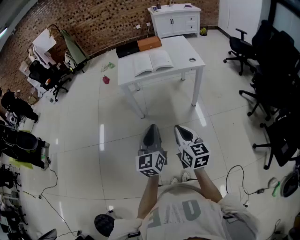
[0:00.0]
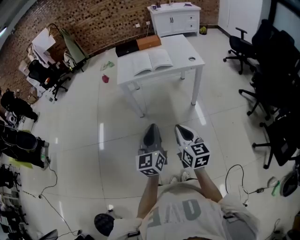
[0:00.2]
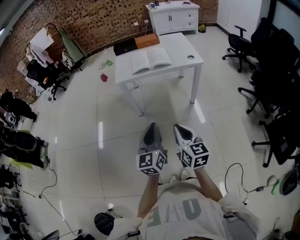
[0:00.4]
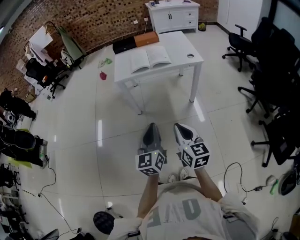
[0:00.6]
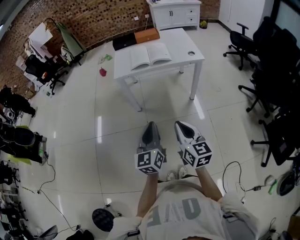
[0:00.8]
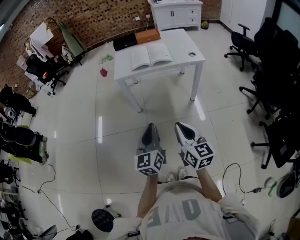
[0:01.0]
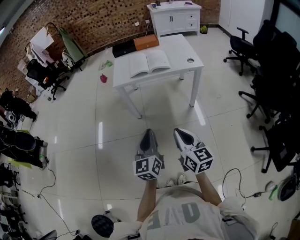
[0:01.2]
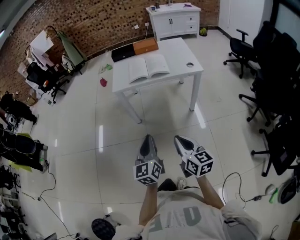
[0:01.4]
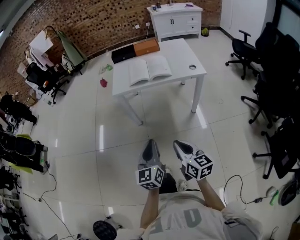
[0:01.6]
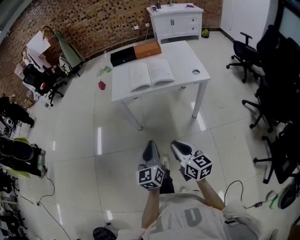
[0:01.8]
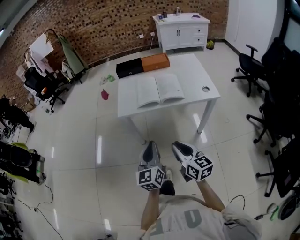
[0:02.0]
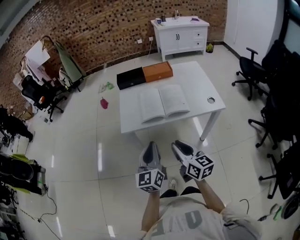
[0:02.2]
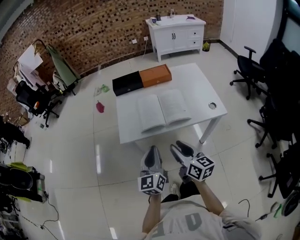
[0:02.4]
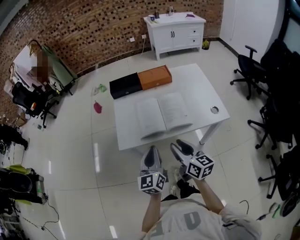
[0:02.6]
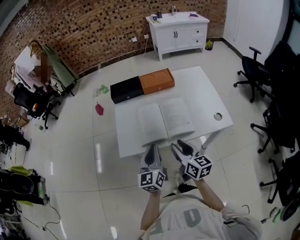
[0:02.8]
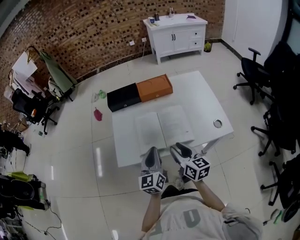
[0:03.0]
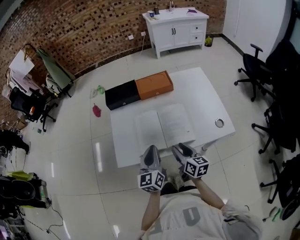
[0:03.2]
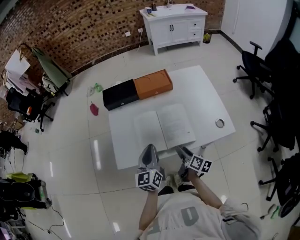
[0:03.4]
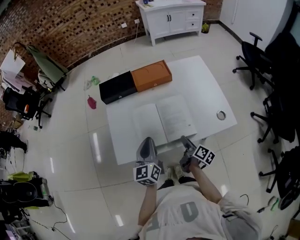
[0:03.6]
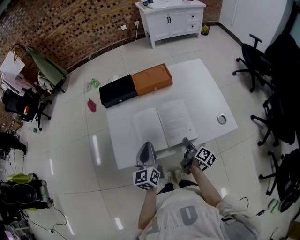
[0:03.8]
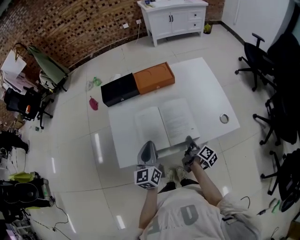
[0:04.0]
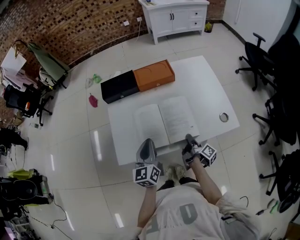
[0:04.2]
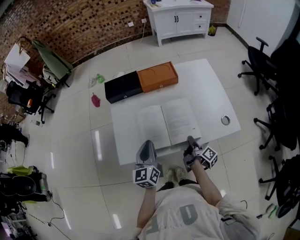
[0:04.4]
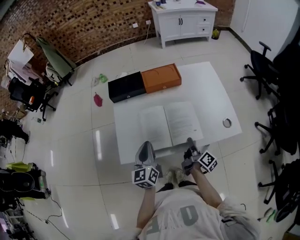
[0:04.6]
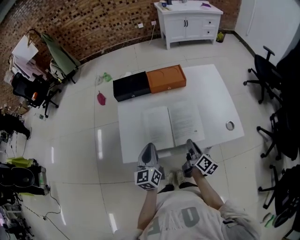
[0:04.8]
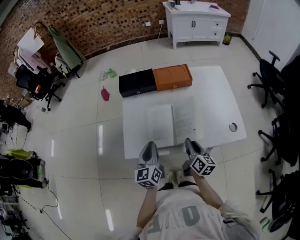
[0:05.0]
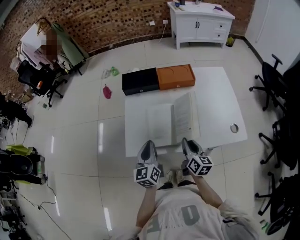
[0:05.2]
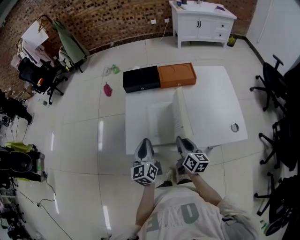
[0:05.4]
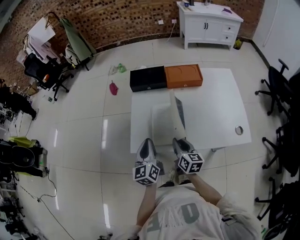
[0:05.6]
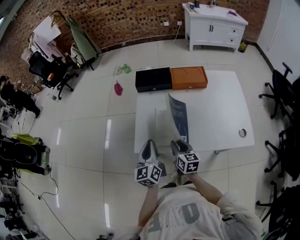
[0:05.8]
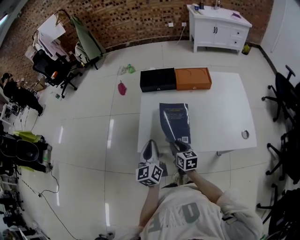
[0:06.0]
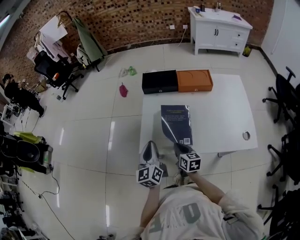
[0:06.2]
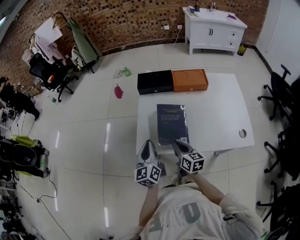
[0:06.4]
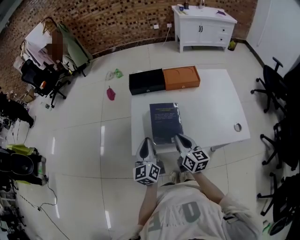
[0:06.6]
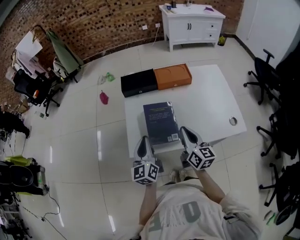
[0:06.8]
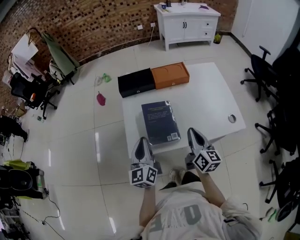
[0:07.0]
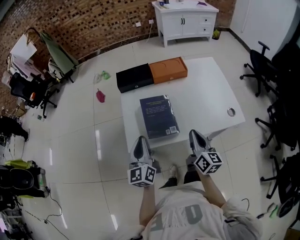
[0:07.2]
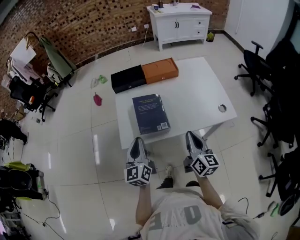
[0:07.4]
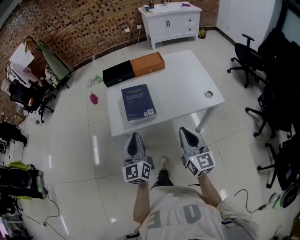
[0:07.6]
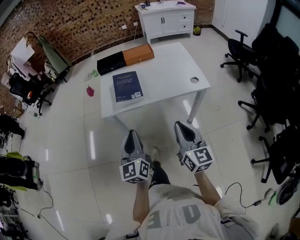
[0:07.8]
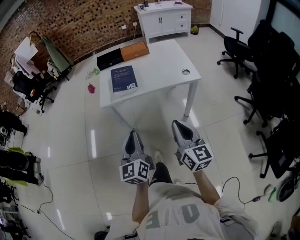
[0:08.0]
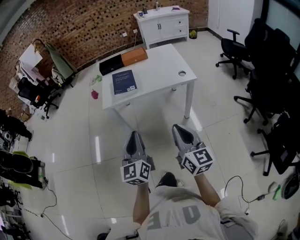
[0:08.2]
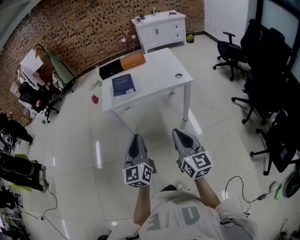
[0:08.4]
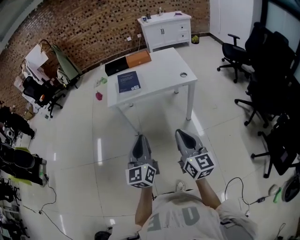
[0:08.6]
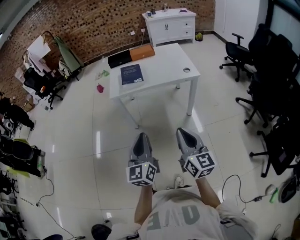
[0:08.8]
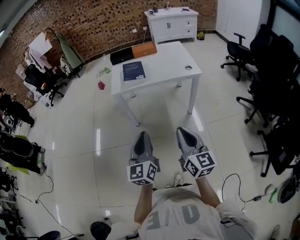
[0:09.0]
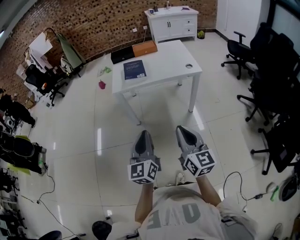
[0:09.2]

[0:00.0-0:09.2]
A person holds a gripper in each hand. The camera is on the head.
0:00.0 to 0:01.6: The grippers both shift forward by approximately 5 cm.
0:01.6 to 0:03.0: Both grippers are carried forward, approximately 50 cm. The right gripper opens.
0:03.0 to 0:04.6: The left gripper goes some 10 cm forward and to the left. The right gripper heads downward, to the right and forward, covering about 15 cm, rotates around the line of its fingers by roughly 50 degrees, clockwise from behind, and opens, then closes again.
0:04.6 to 0:06.2: The left gripper goes some 10 cm to the left. The right gripper shifts about 20 cm to the left, and twists roughly 50 degrees counterclockwise, seen from behind.
0:06.2 to 0:07.6: The left gripper shifts roughly 15 cm backward and to the right, while the right gripper shifts approximately 30 cm backward, upward and to the right, and turns by roughly 40 degrees.
0:07.6 to 0:09.2: Both grippers travel together backward, some 40 cm.

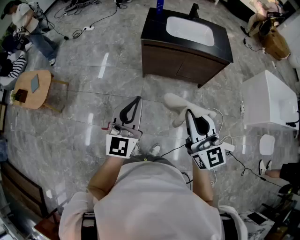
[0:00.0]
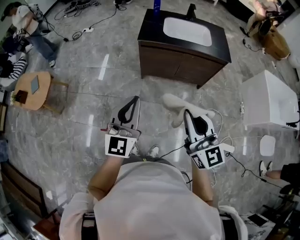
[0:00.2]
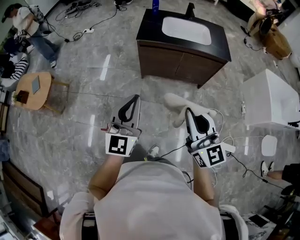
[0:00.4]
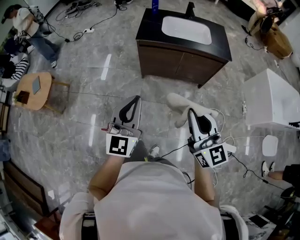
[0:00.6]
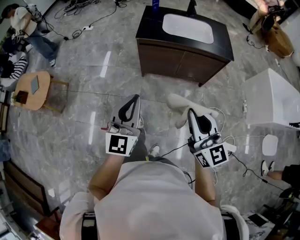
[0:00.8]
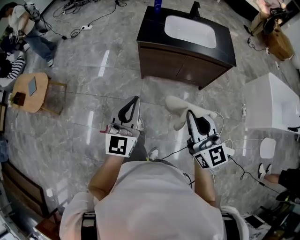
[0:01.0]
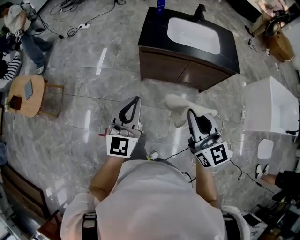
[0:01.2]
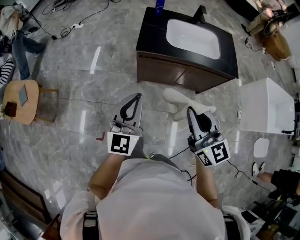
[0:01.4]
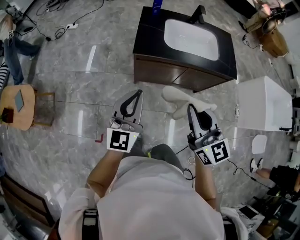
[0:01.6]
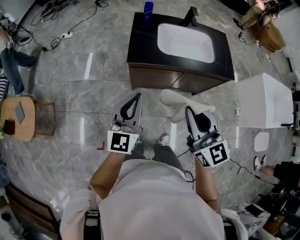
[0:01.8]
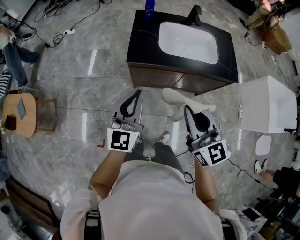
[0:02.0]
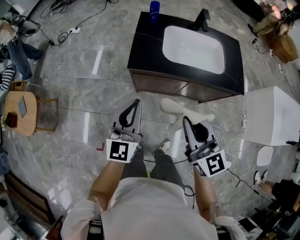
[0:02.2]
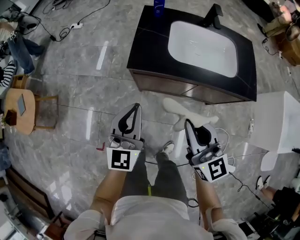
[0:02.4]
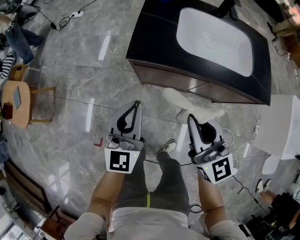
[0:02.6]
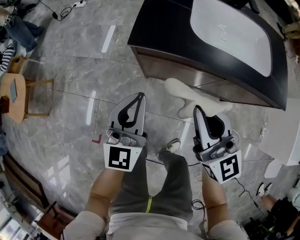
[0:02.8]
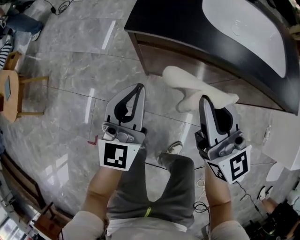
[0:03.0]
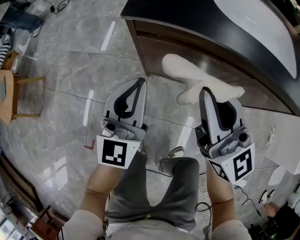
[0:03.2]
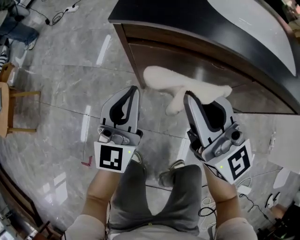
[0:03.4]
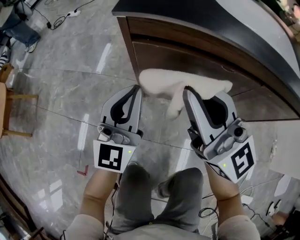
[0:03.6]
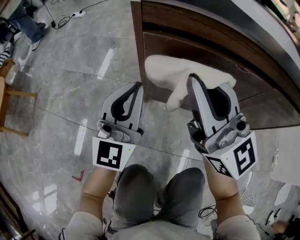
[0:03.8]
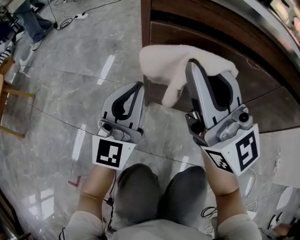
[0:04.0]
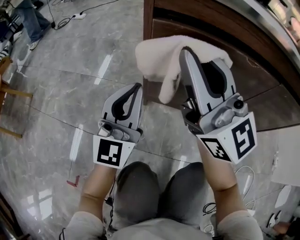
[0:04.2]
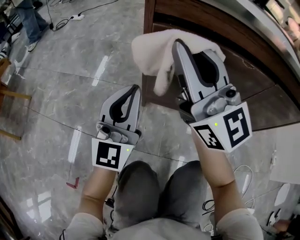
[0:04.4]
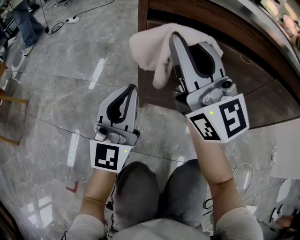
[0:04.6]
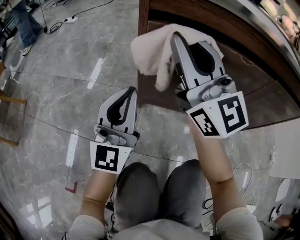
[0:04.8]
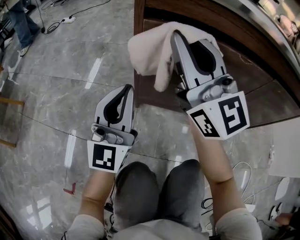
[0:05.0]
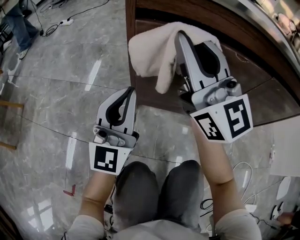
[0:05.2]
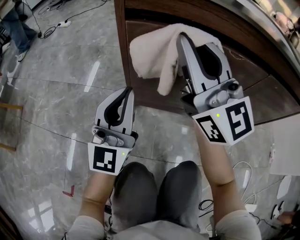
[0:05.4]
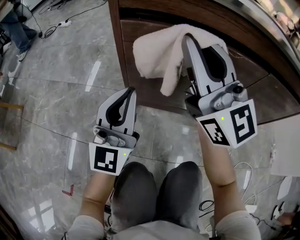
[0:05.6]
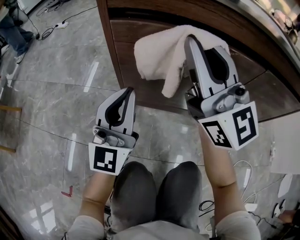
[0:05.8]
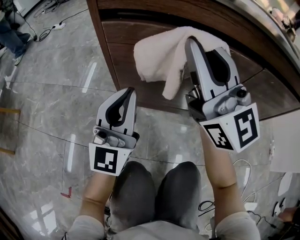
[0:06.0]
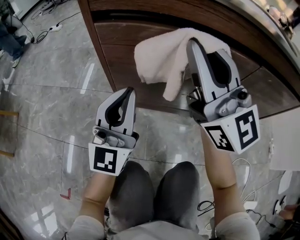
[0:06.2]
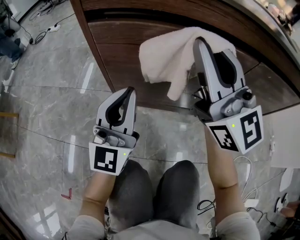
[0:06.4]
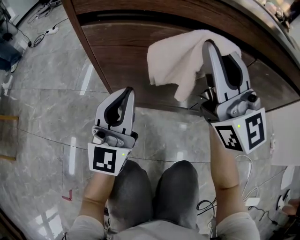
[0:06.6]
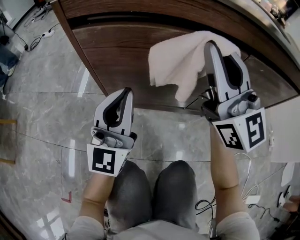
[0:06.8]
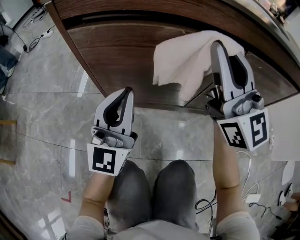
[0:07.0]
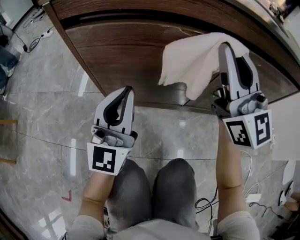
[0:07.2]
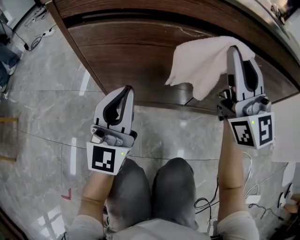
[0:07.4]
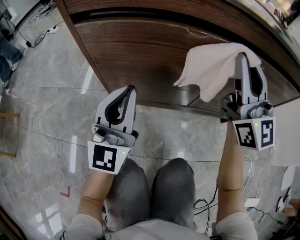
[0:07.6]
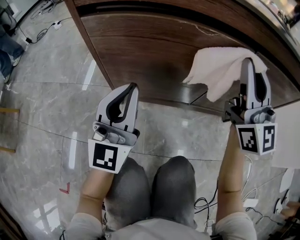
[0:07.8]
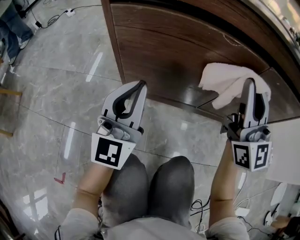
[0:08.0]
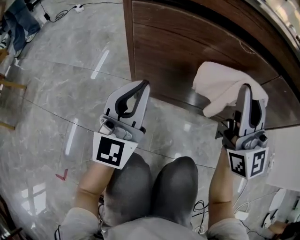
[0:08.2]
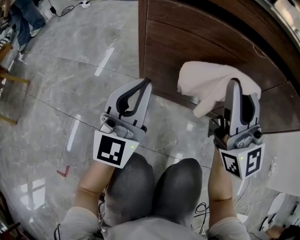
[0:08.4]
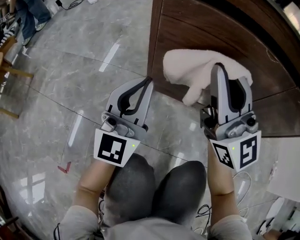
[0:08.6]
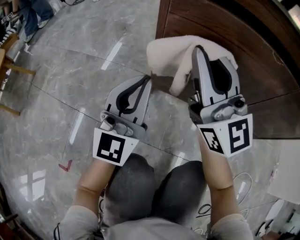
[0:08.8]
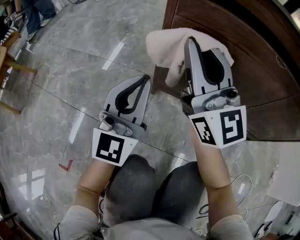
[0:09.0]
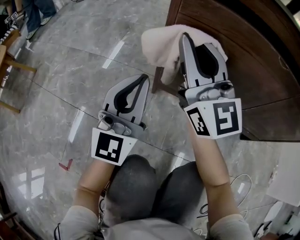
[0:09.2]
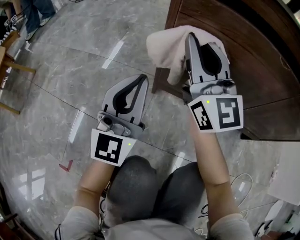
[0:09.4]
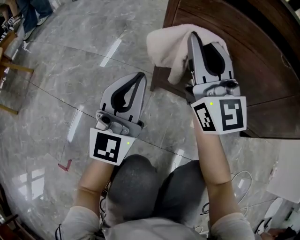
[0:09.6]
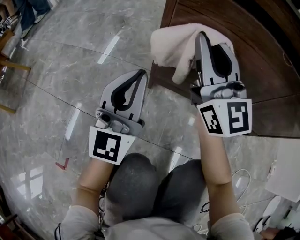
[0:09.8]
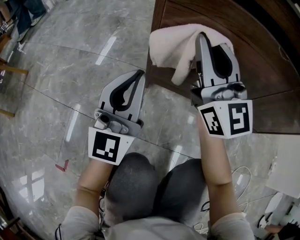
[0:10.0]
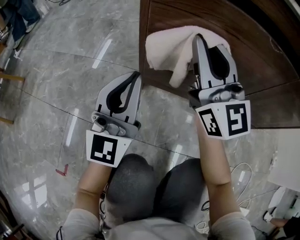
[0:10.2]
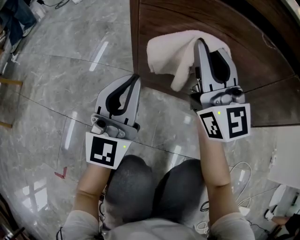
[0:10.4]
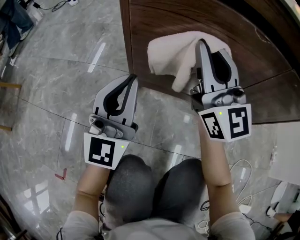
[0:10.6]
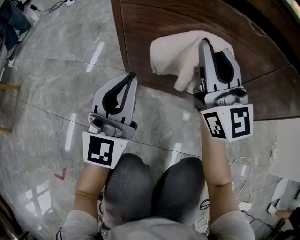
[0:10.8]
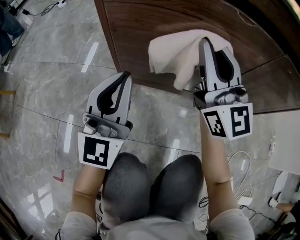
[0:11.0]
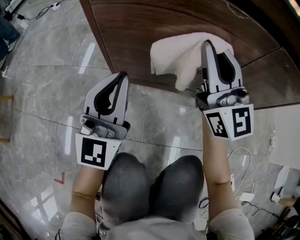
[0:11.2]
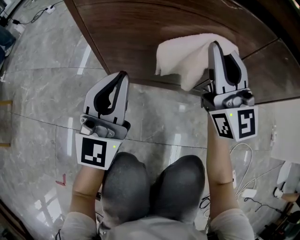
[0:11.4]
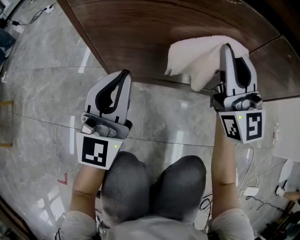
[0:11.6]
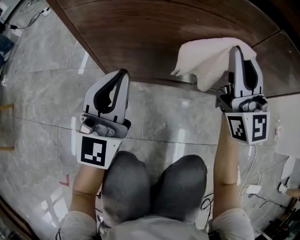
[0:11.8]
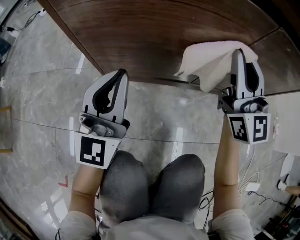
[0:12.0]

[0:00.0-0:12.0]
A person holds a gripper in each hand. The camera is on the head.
0:00.0 to 0:01.6: Both grippers travel together forward, some 30 cm.
0:01.6 to 0:03.0: The grippers both shift downward and forward by about 40 cm.
0:03.0 to 0:04.4: The left gripper goes approximately 25 cm downward. Meanwhile the right gripper heads downward, to the left and forward, covering about 20 cm, and turns by some 20 degrees.
0:04.4 to 0:06.0: Both grippers travel together to the right, some 10 cm.
0:06.0 to 0:07.6: The right gripper shifts roughly 20 cm to the right, while the left gripper shifts about 5 cm to the right.
0:07.6 to 0:09.0: The left gripper goes some 15 cm to the left, while the right gripper travels to the left by roughly 30 cm, and rotates approximately 20 degrees.
0:09.0 to 0:10.4: The right gripper travels to the right by approximately 10 cm.
0:10.4 to 0:12.0: The left gripper goes about 10 cm to the right, while the right gripper shifts about 25 cm to the right.

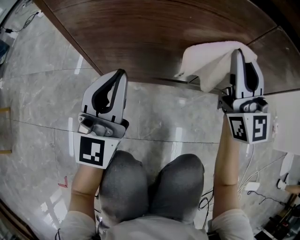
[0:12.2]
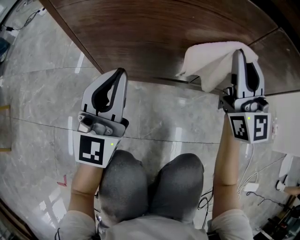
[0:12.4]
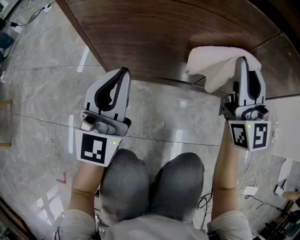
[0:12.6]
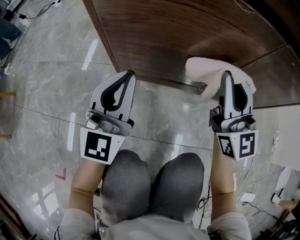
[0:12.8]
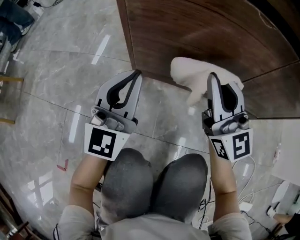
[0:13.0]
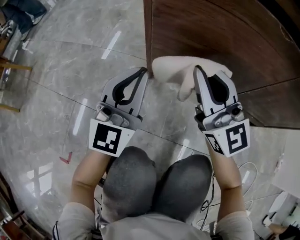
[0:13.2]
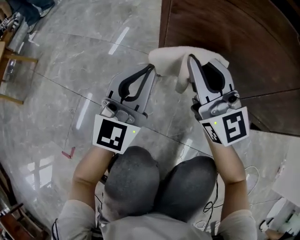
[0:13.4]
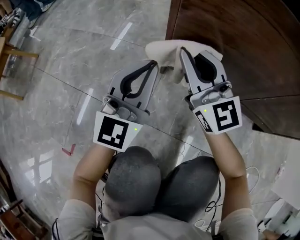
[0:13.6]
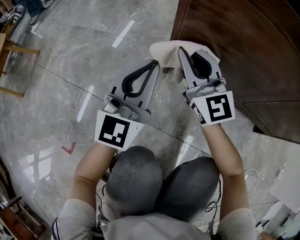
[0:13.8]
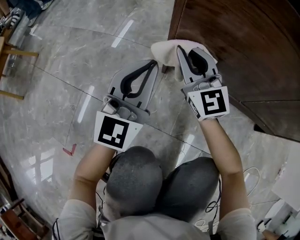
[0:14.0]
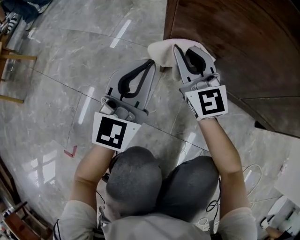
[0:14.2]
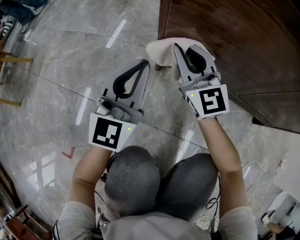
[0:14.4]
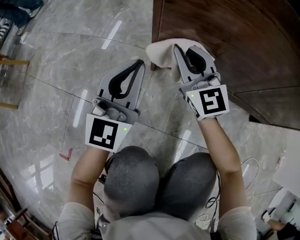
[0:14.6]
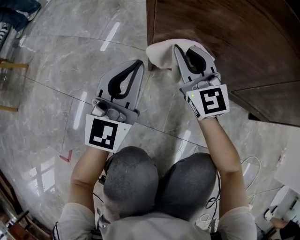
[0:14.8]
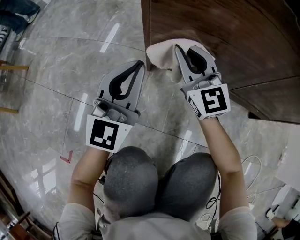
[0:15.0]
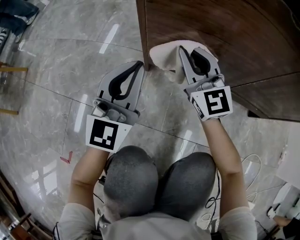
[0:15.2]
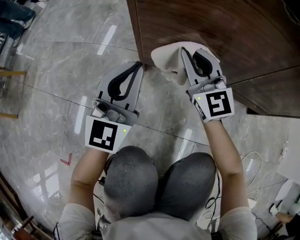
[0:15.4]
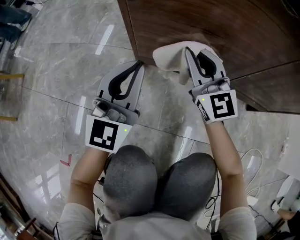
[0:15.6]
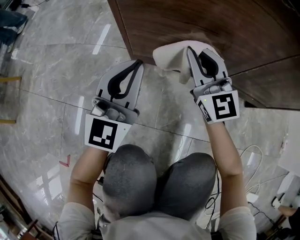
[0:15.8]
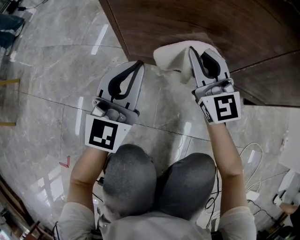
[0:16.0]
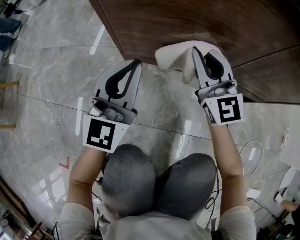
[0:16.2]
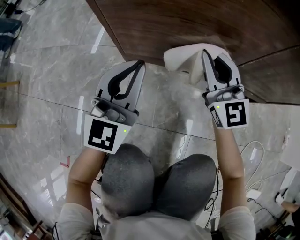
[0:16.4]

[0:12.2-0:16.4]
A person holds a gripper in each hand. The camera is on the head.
0:12.2 to 0:13.6: The right gripper goes about 35 cm to the left, and changes its angle by roughly 30 degrees, while the left gripper moves to the left, roughly 15 cm.
0:13.6 to 0:15.0: The right gripper heads to the right and downward, covering approximately 10 cm.
0:15.0 to 0:16.4: The left gripper is displaced to the right by about 10 cm; the right gripper moves to the right, some 15 cm.
